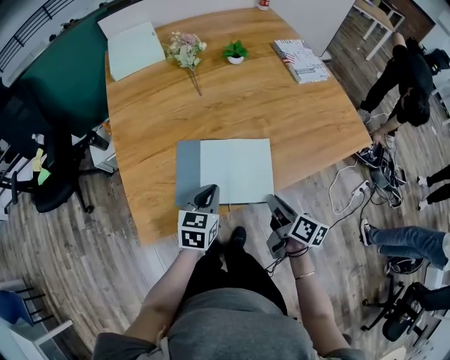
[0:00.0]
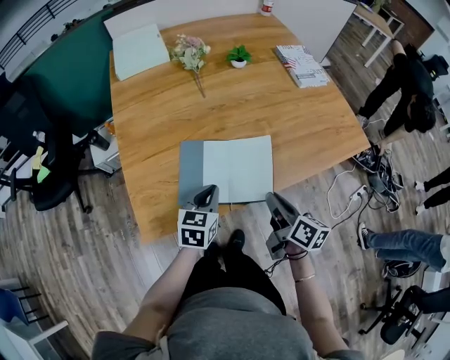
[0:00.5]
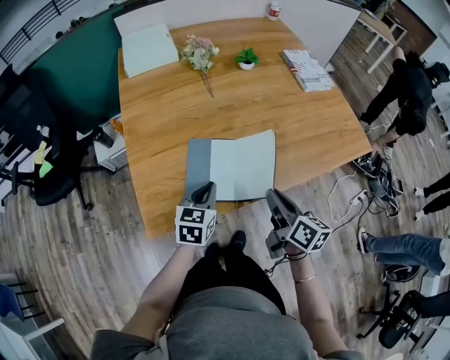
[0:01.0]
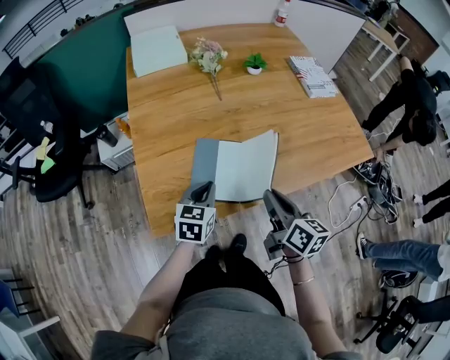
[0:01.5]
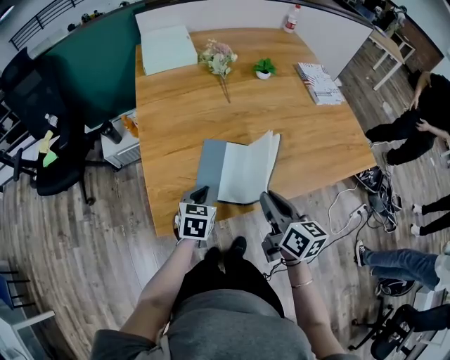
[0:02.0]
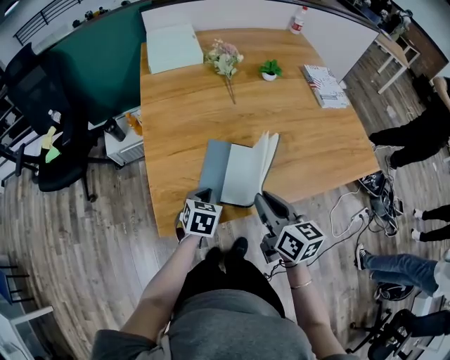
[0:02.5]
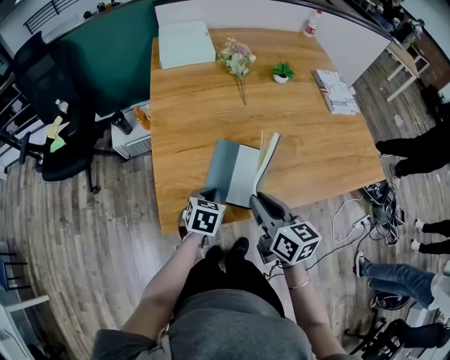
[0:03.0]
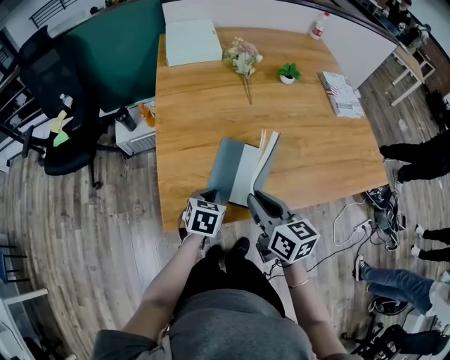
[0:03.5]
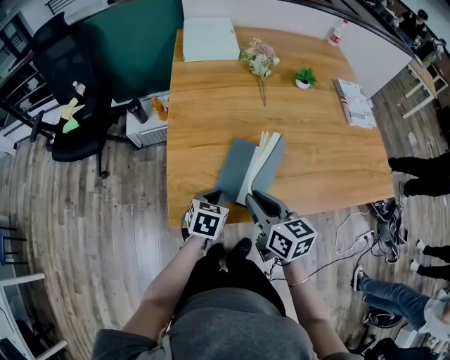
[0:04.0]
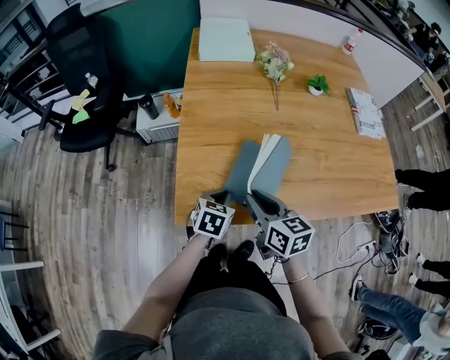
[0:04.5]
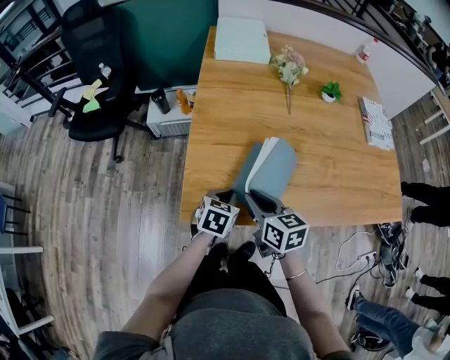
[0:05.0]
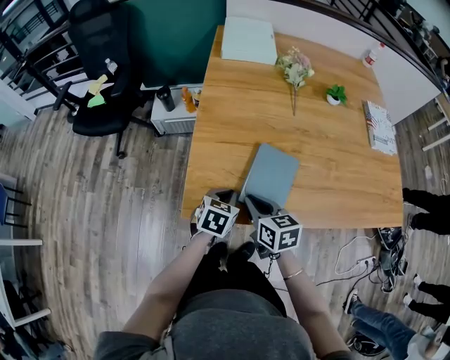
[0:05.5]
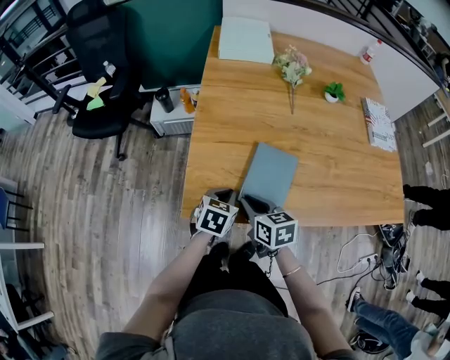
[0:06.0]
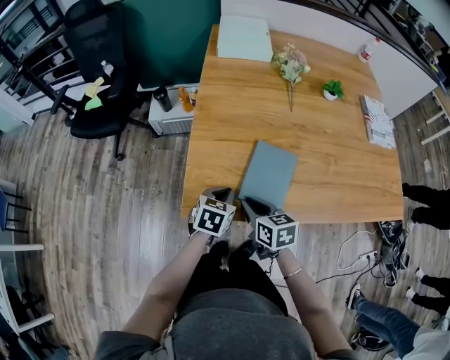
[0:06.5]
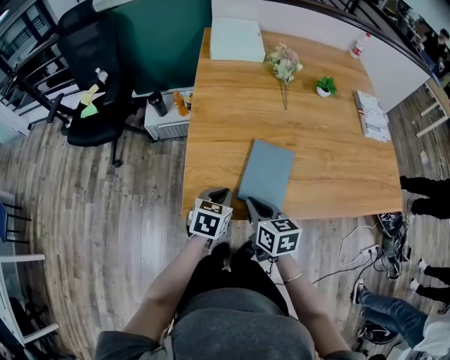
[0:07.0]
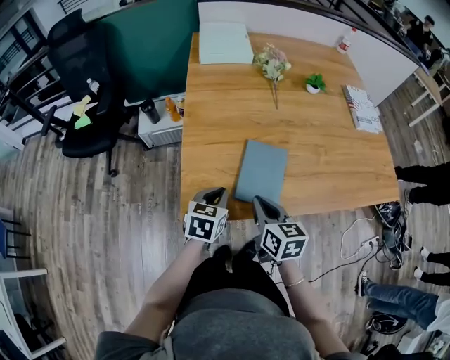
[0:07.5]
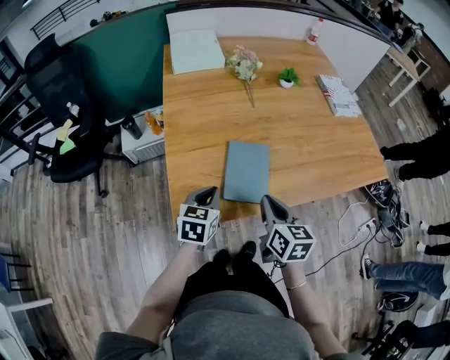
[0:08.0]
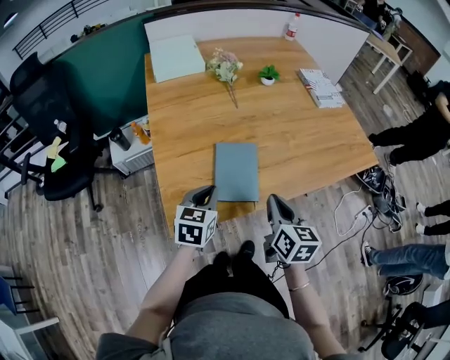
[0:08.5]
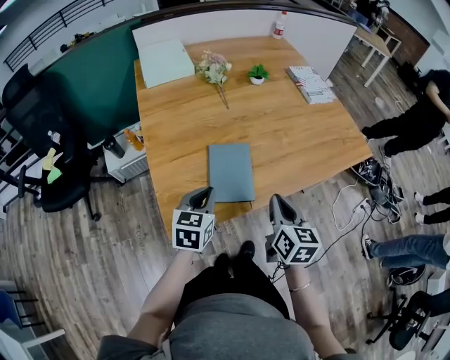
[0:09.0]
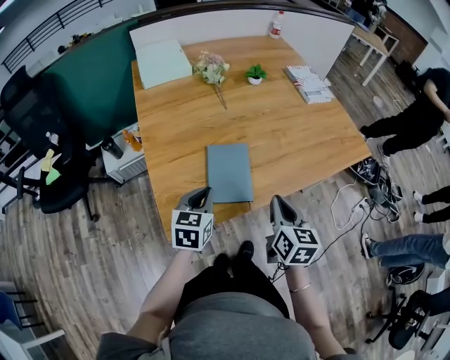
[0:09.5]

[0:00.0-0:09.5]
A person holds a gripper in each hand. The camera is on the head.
0:00.0 to 0:02.0: The right gripper goes roughly 15 cm to the left and upward, and swivels approximately 30 degrees. Meanwhile the left gripper travels to the left by some 10 cm.
0:02.0 to 0:04.0: The right gripper goes some 10 cm to the left, and turns by approximately 20 degrees.
0:04.0 to 0:05.5: The right gripper travels downward and to the left by approximately 10 cm.
0:05.5 to 0:07.5: The right gripper shifts by some 5 cm.
0:07.5 to 0:09.5: The right gripper heads to the right, covering some 15 cm, and turns by some 30 degrees. The left gripper changes place by about 5 cm.

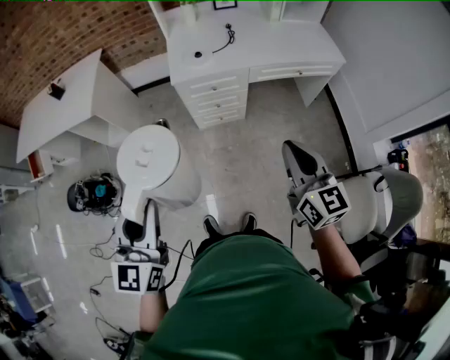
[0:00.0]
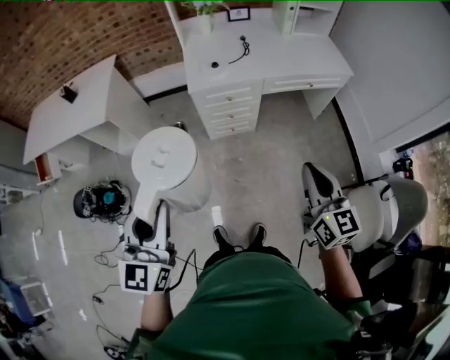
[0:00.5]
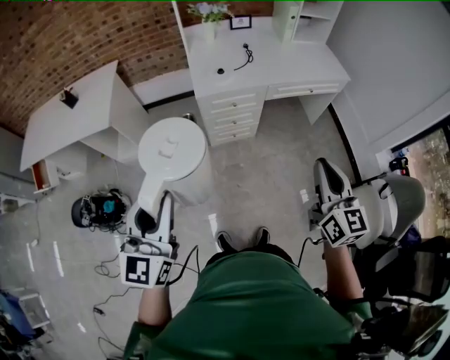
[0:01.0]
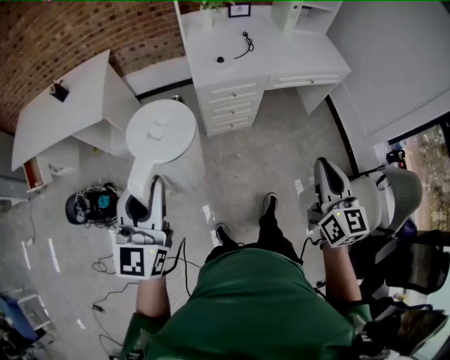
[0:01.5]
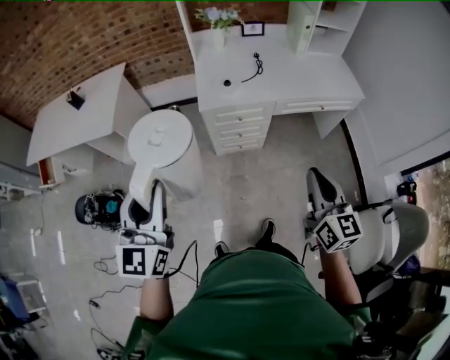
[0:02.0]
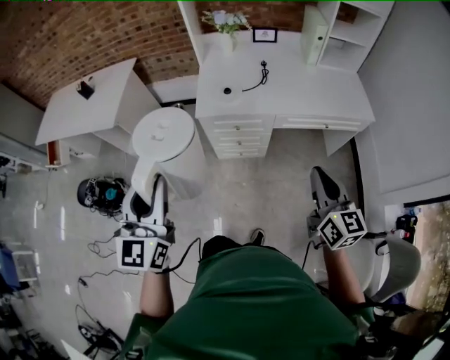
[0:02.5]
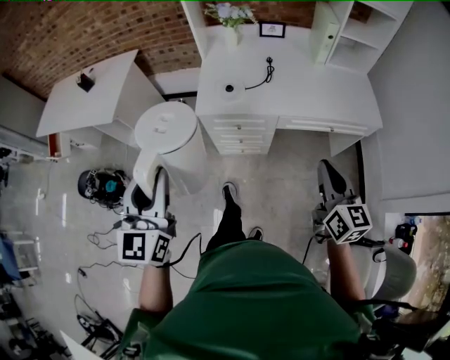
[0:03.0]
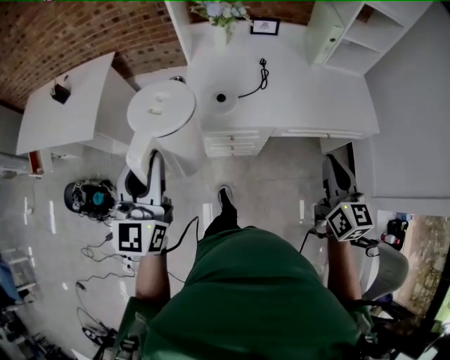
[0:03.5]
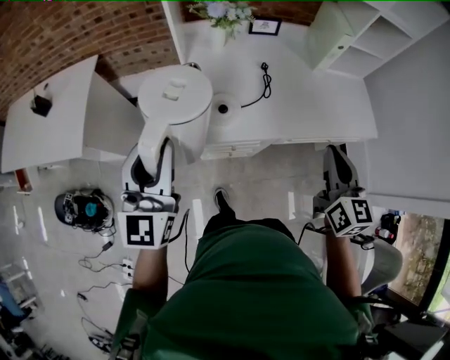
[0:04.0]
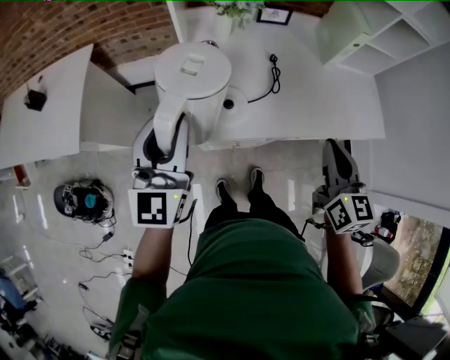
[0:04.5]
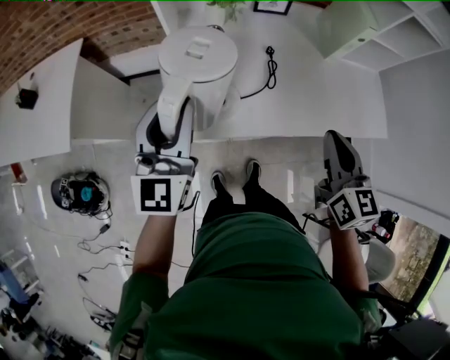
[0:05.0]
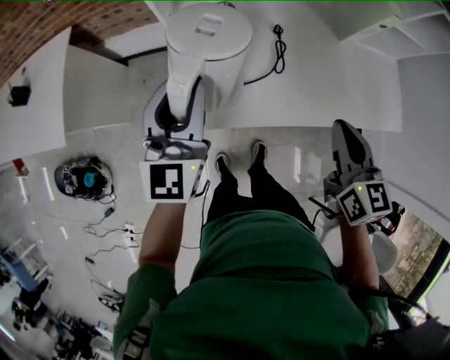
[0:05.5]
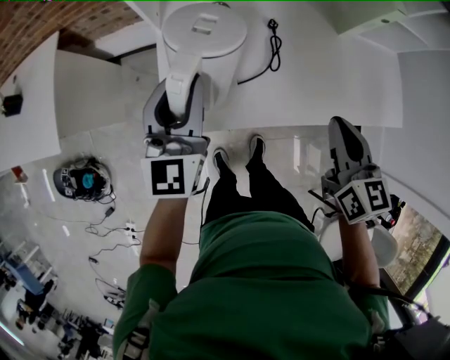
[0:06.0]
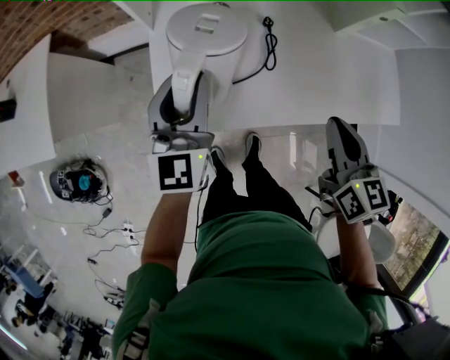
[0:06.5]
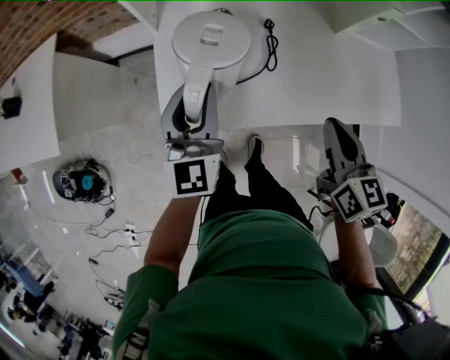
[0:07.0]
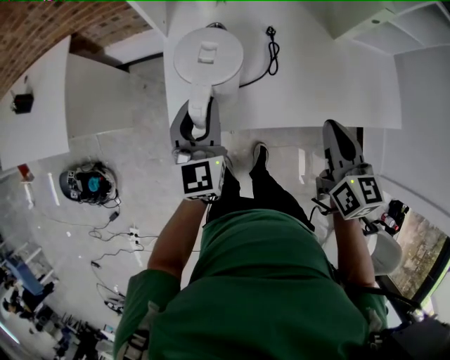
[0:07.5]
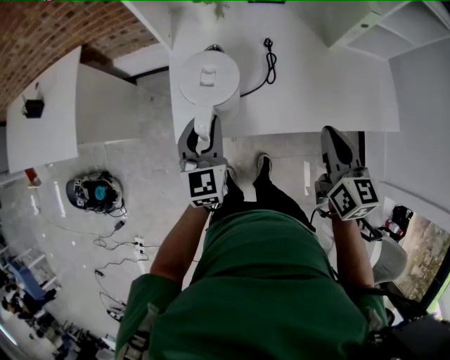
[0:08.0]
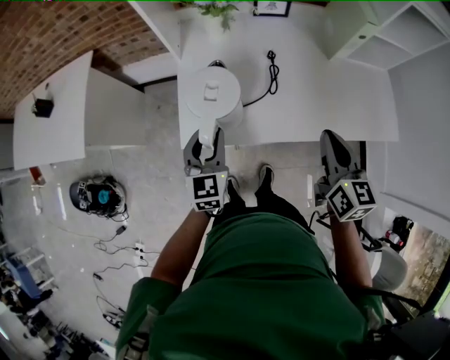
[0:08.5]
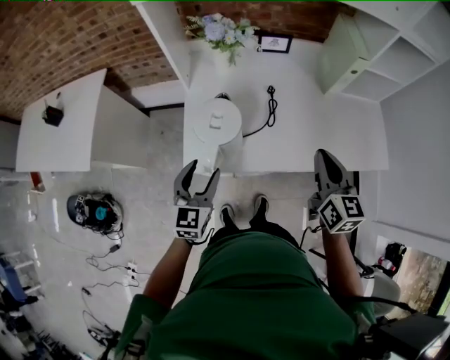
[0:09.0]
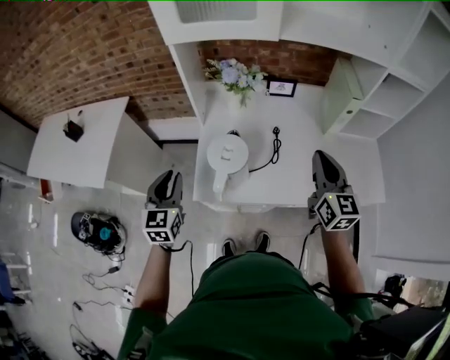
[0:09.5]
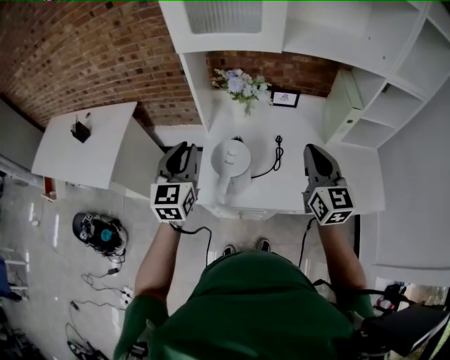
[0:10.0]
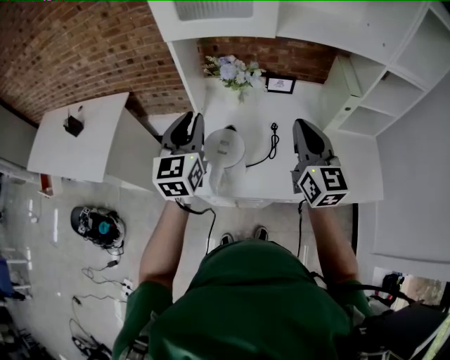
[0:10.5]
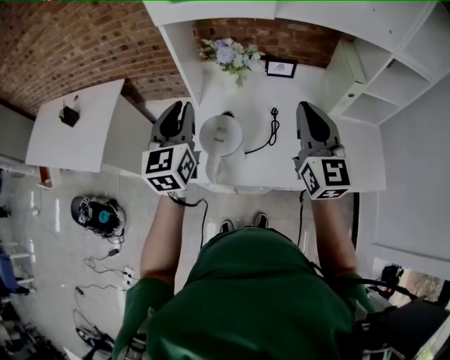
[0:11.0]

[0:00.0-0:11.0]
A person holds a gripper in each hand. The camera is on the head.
0:00.0 to 0:02.0: The left gripper goes about 15 cm forward and to the left.
0:02.0 to 0:03.5: The two grippers go approximately 30 cm forward and to the right.
0:03.5 to 0:05.5: The left gripper is displaced forward and downward by some 35 cm. Meanwhile the right gripper goes roughly 25 cm forward.
0:05.5 to 0:07.5: The left gripper goes some 10 cm downward.
0:07.5 to 0:09.0: The right gripper travels upward by some 5 cm. The left gripper shifts approximately 10 cm backward, and opens up.
0:09.0 to 0:11.0: Both grippers travel together upward and forward, approximately 20 cm. The right gripper rotates some 30 degrees, while the left gripper turns by about 20 degrees, and closes.

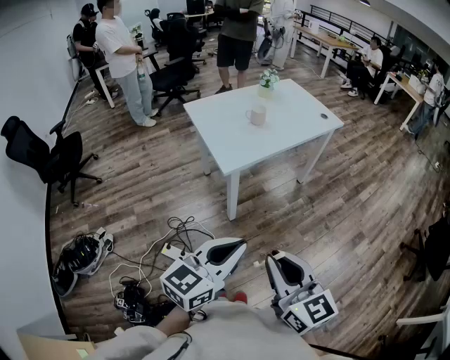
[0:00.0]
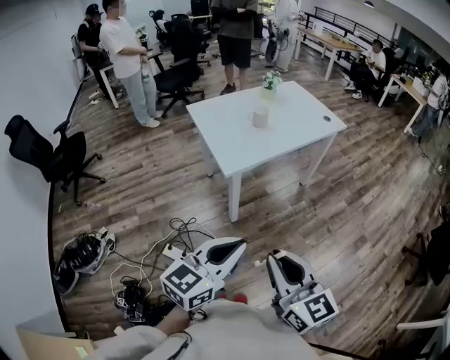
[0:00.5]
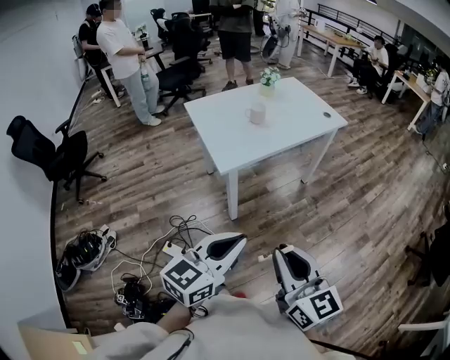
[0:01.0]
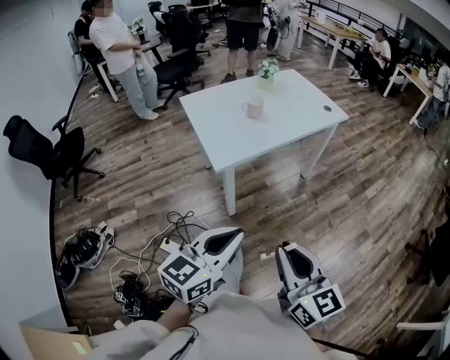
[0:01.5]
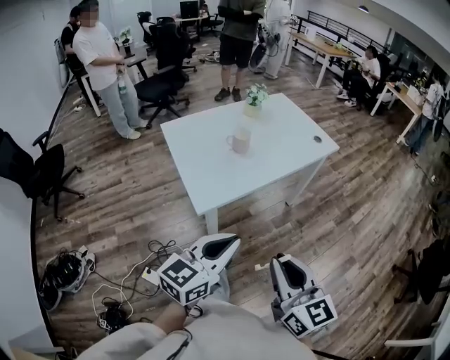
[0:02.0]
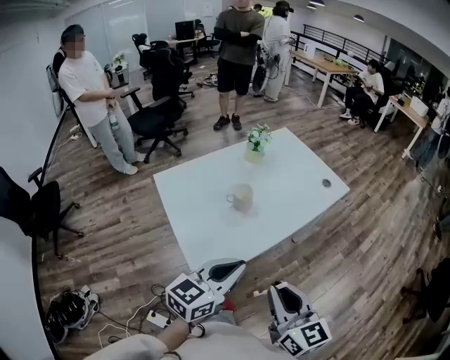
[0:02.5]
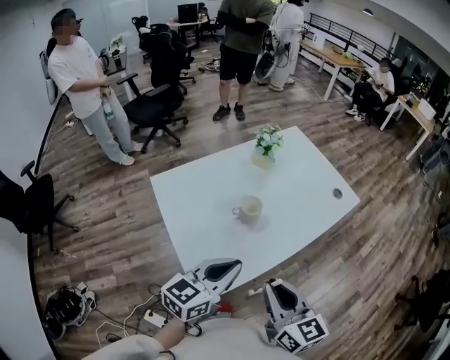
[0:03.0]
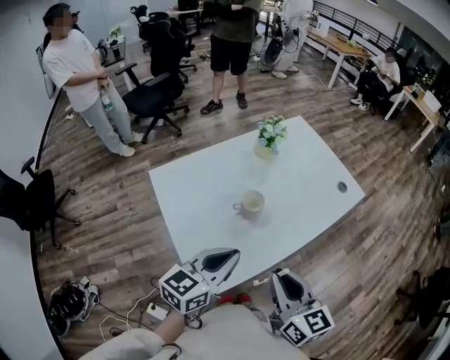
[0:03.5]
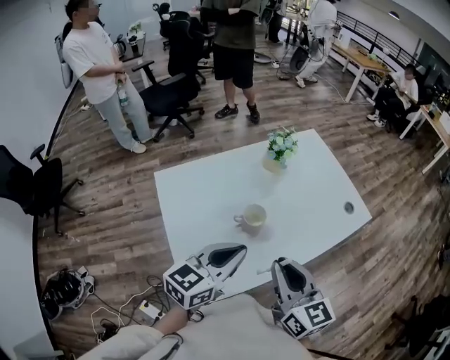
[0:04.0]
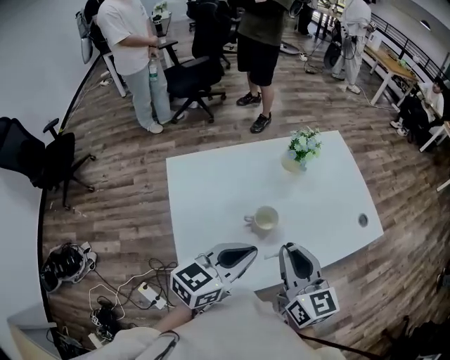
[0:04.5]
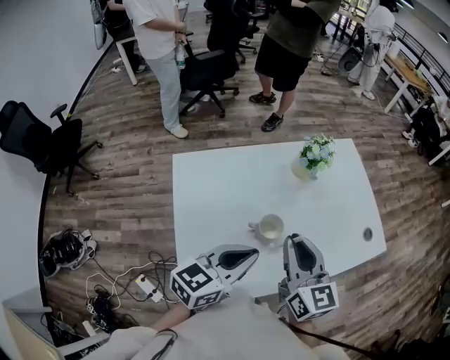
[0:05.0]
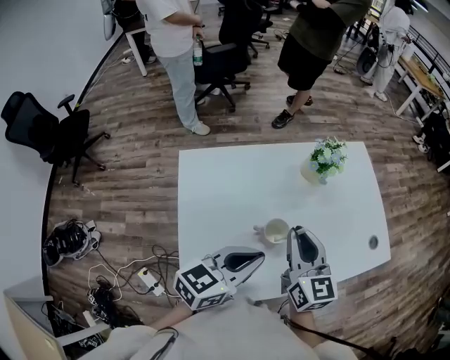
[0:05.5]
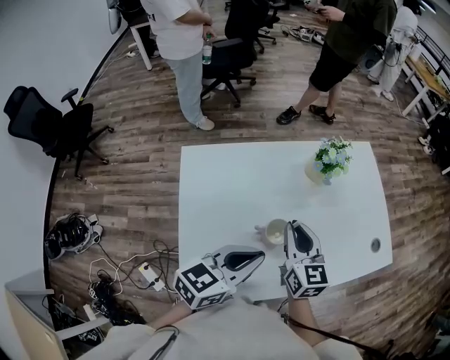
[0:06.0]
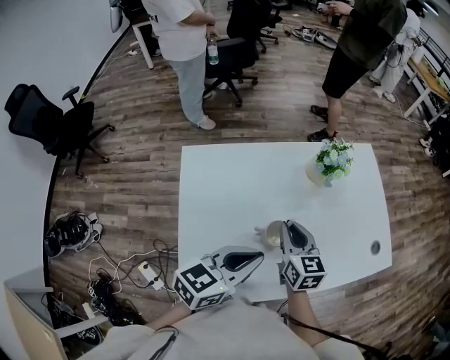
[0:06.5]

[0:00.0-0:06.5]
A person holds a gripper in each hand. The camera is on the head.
0:00.0 to 0:02.0: The grippers both shift forward by approximately 20 cm.
0:02.0 to 0:04.5: The two grippers go some 40 cm forward.
0:04.5 to 0:06.5: The right gripper is displaced downward, forward and to the left by approximately 20 cm. Meanwhile the left gripper ends up approximately 5 cm from where it was.
